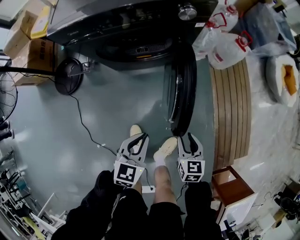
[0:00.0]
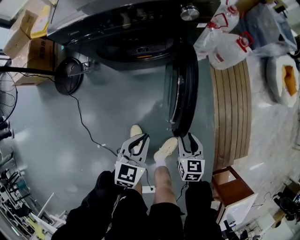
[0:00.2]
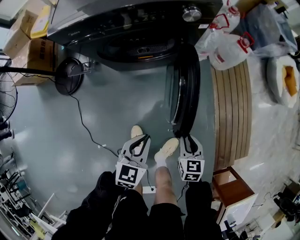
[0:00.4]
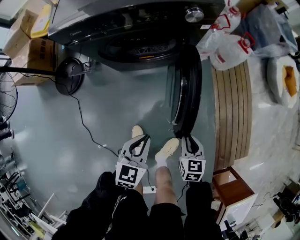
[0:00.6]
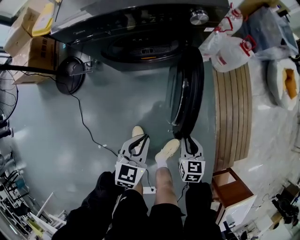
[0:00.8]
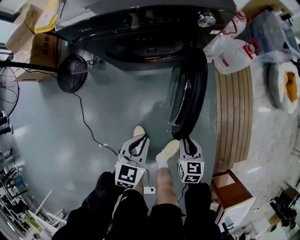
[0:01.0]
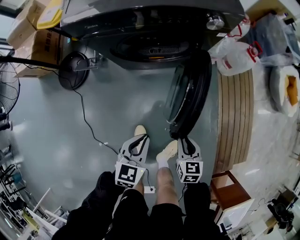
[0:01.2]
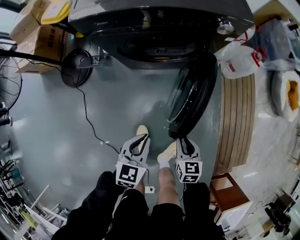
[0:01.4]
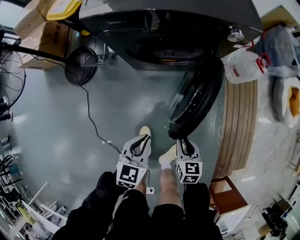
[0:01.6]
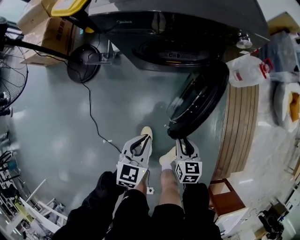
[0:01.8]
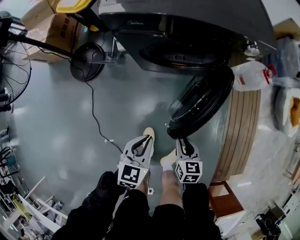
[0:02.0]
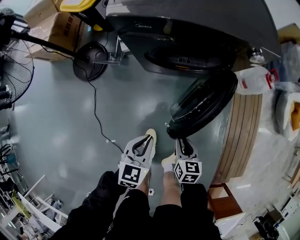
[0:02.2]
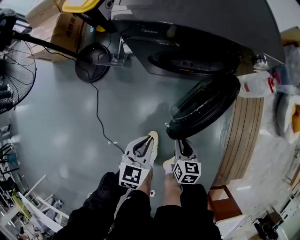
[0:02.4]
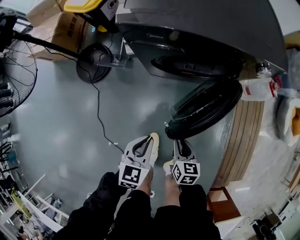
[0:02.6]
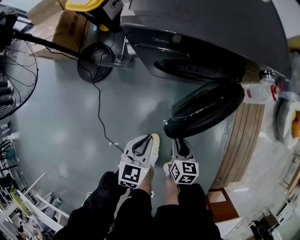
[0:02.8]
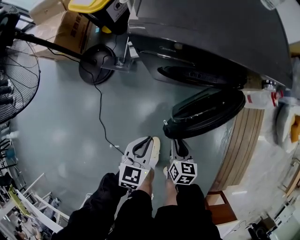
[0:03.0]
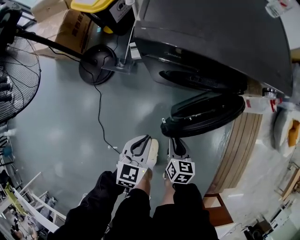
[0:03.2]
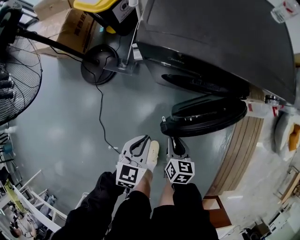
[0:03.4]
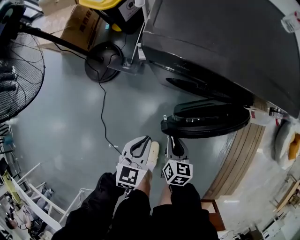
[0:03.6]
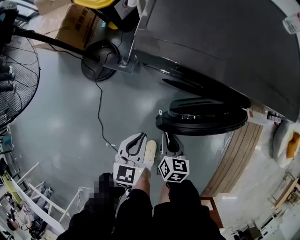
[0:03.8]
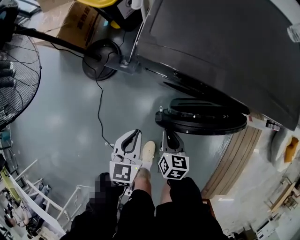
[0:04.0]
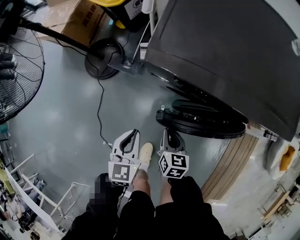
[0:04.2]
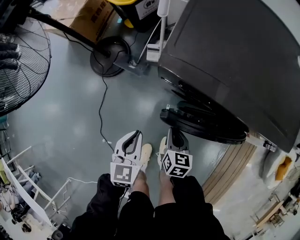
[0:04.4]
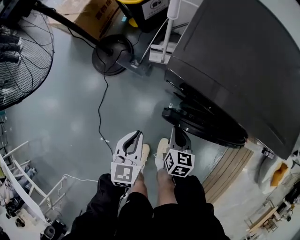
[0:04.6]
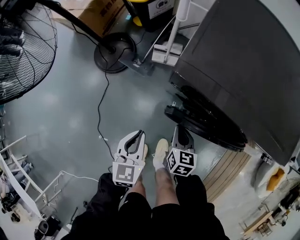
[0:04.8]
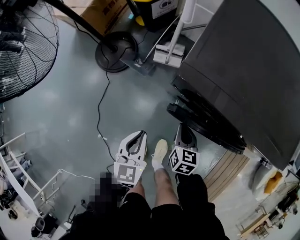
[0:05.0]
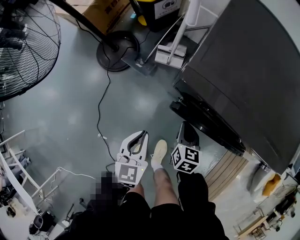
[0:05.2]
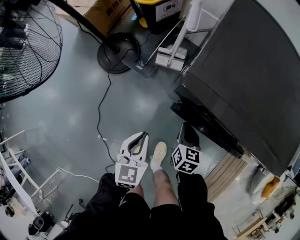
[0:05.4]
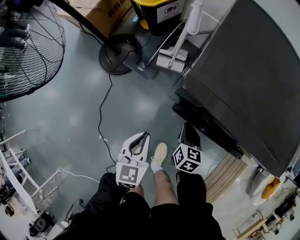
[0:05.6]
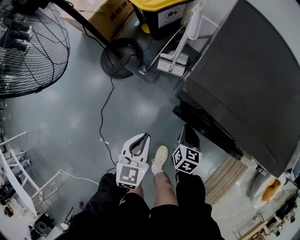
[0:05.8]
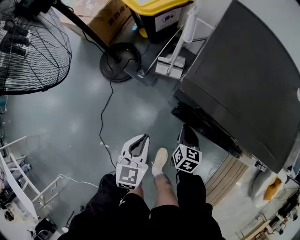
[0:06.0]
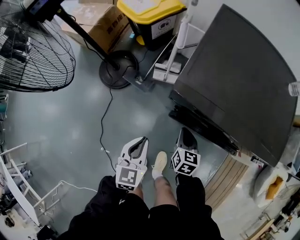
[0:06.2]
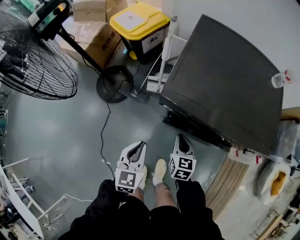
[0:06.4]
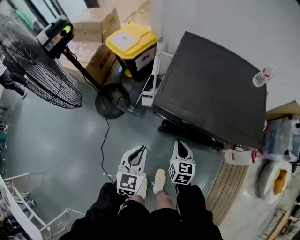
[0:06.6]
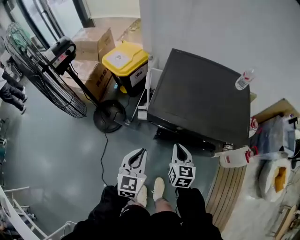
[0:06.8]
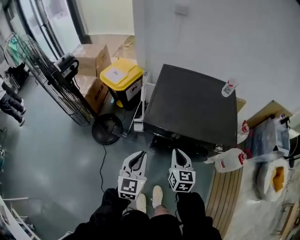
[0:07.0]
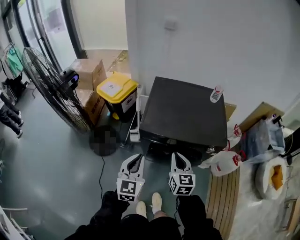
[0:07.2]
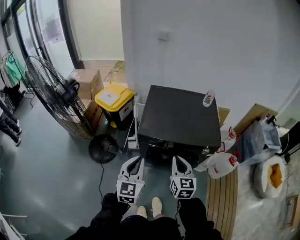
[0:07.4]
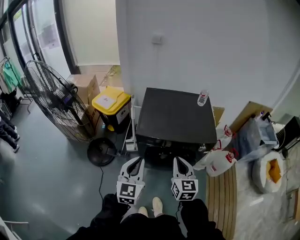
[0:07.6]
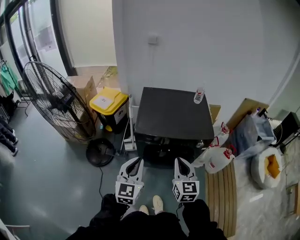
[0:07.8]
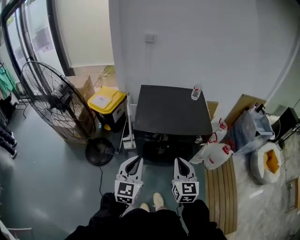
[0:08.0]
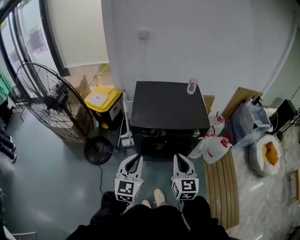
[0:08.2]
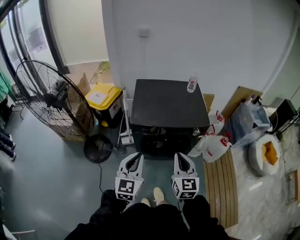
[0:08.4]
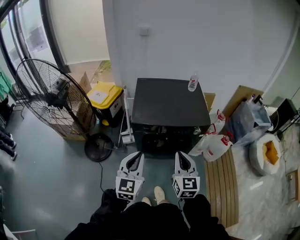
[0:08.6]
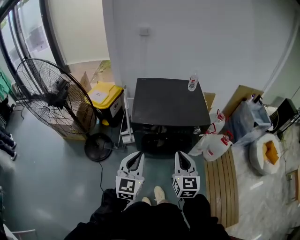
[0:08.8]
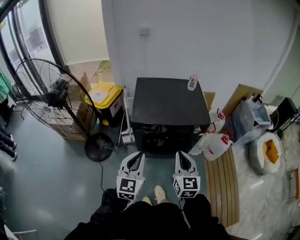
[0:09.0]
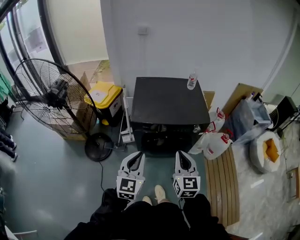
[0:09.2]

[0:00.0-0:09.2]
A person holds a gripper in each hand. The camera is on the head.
0:00.0 to 0:01.6: The grippers both shift to the left by roughly 15 cm.
0:01.6 to 0:03.0: Both grippers move to the left and forward, roughly 20 cm.
0:03.0 to 0:04.6: The right gripper shifts approximately 20 cm forward, and closes up. The left gripper moves forward and to the left, about 15 cm, and turns by some 30 degrees.
0:04.6 to 0:06.2: The right gripper heads forward, covering some 5 cm. Meanwhile the left gripper heads upward, covering roughly 5 cm.
0:06.2 to 0:07.6: The right gripper moves upward and backward, roughly 50 cm, and turns by some 30 degrees; the left gripper goes roughly 40 cm upward, and turns by about 30 degrees.
0:07.6 to 0:09.2: The two grippers go roughly 10 cm backward.

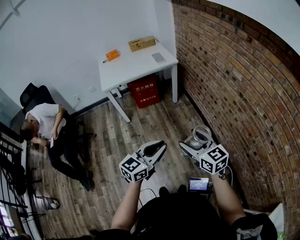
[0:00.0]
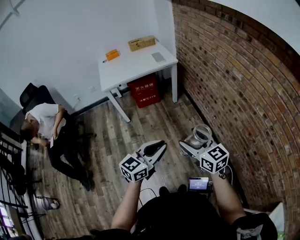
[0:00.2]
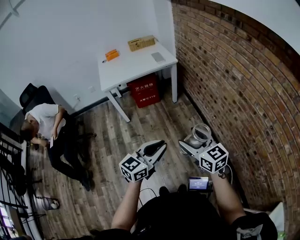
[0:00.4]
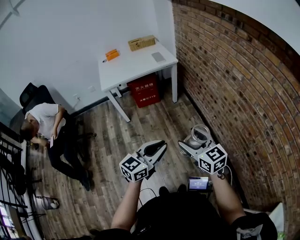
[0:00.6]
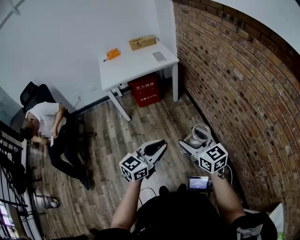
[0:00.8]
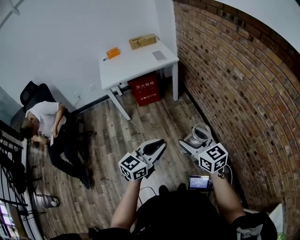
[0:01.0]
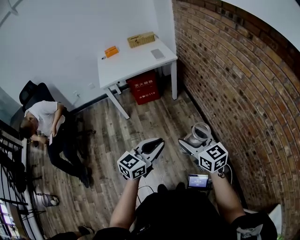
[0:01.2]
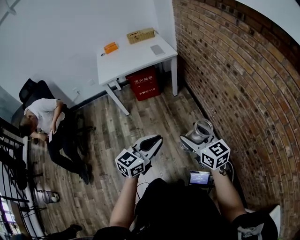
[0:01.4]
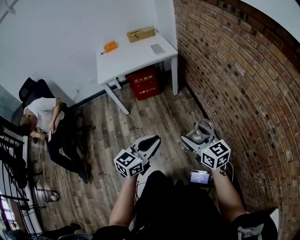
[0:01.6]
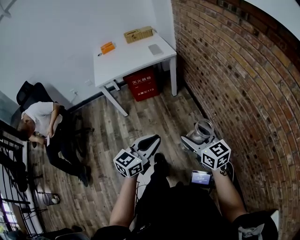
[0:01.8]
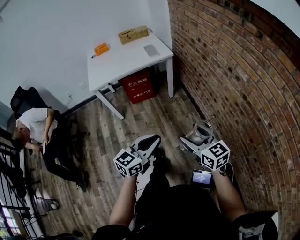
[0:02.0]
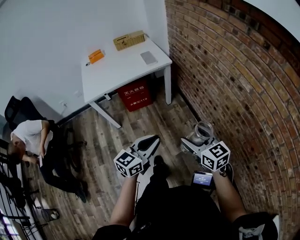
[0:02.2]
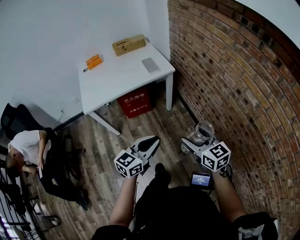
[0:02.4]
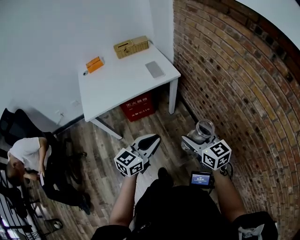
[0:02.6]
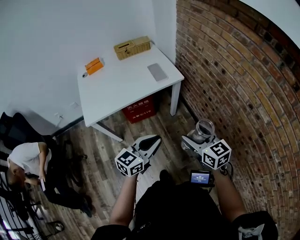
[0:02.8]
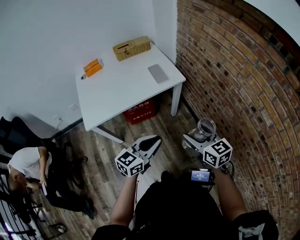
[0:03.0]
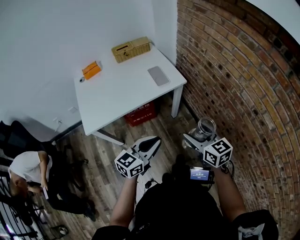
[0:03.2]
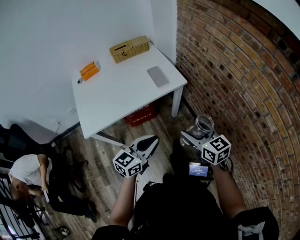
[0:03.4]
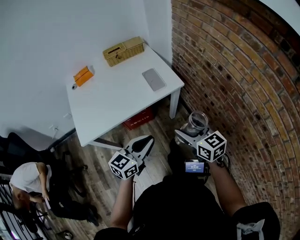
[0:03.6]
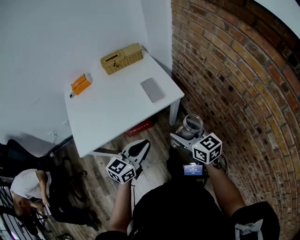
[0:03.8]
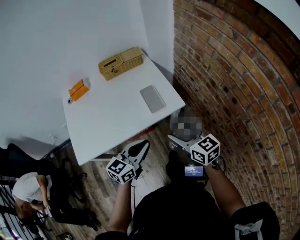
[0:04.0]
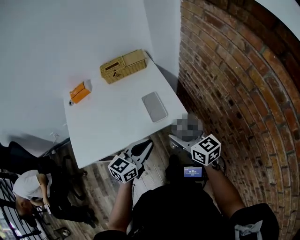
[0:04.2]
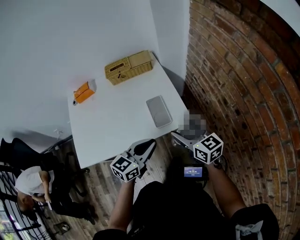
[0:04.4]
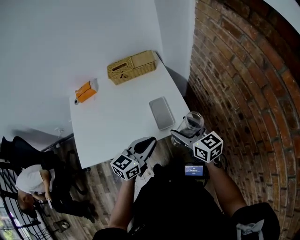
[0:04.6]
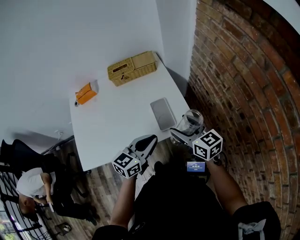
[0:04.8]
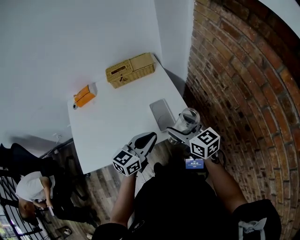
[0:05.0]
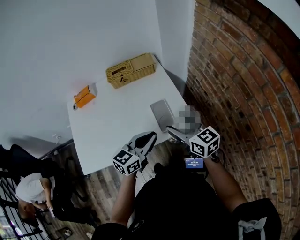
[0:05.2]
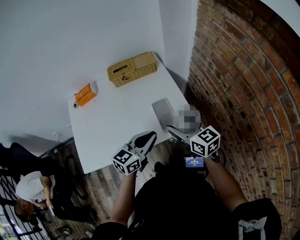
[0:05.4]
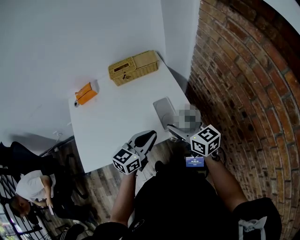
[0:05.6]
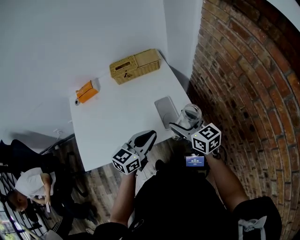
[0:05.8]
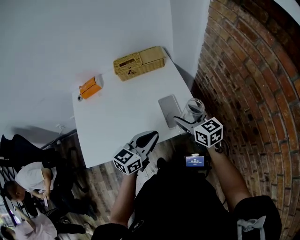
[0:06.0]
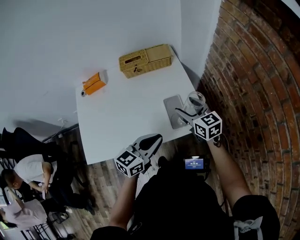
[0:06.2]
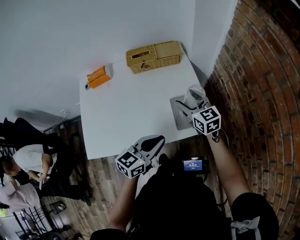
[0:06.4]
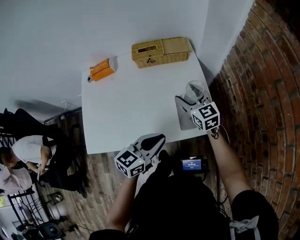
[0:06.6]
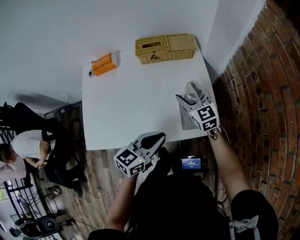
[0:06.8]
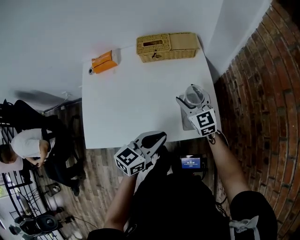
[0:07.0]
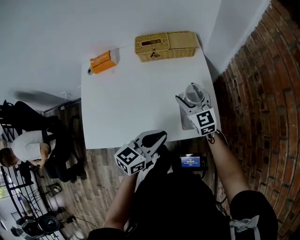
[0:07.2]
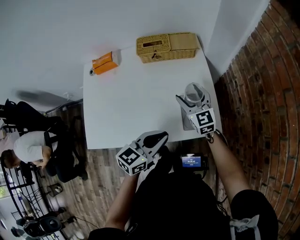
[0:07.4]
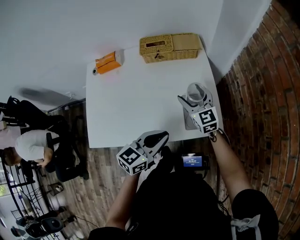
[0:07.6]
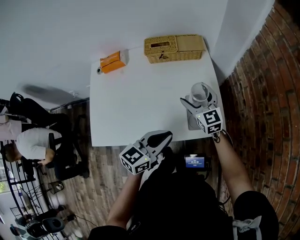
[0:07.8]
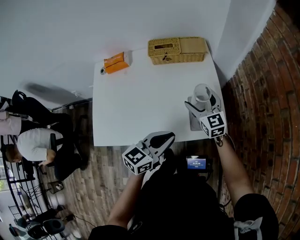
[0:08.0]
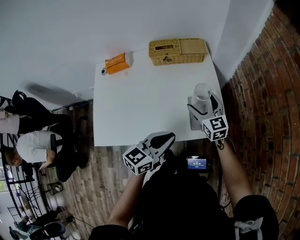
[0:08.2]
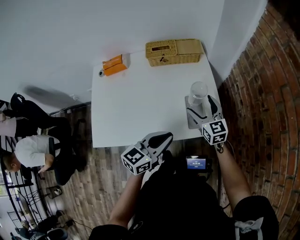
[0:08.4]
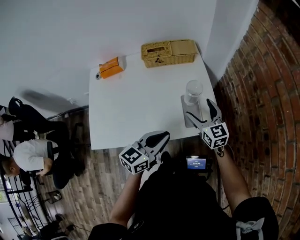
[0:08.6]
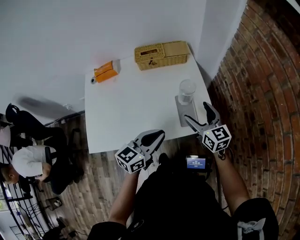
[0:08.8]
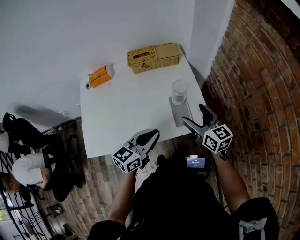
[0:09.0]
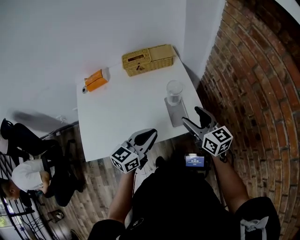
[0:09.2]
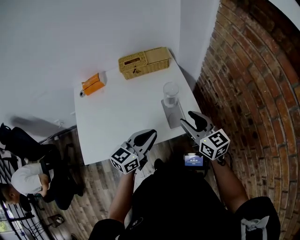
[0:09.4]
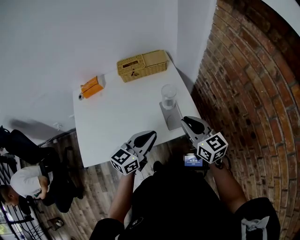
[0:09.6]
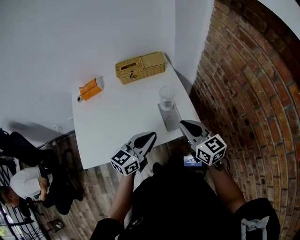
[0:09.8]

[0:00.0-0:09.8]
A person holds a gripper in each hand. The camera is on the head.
0:00.0 to 0:01.4: The grippers make only small movements.
0:01.4 to 0:02.8: Both grippers travel together forward, about 40 cm.
0:02.8 to 0:04.2: Both grippers travel together forward, about 35 cm.
0:04.2 to 0:05.6: The left gripper travels forward by about 10 cm. Meanwhile the right gripper shifts about 10 cm forward and to the left.
0:05.6 to 0:07.0: The right gripper travels forward, downward and to the left by about 20 cm, and turns by some 20 degrees.
0:07.0 to 0:08.4: The right gripper shifts by roughly 5 cm.
0:08.4 to 0:09.8: The right gripper moves backward and upward, approximately 15 cm, and closes its fingers.

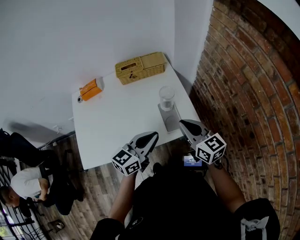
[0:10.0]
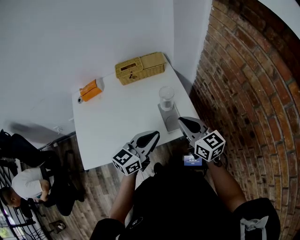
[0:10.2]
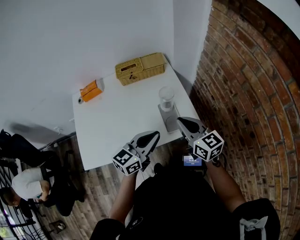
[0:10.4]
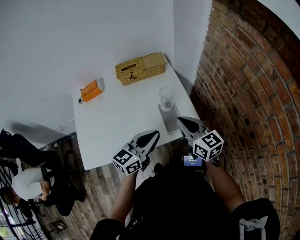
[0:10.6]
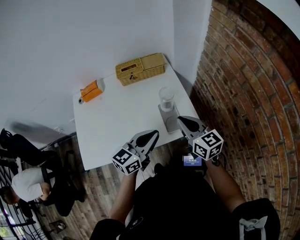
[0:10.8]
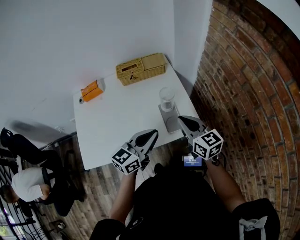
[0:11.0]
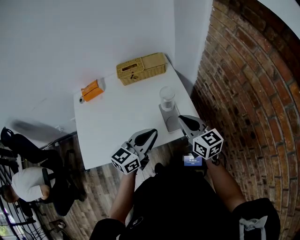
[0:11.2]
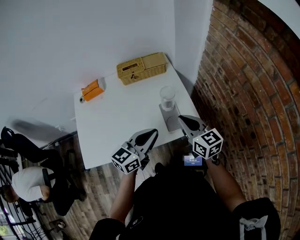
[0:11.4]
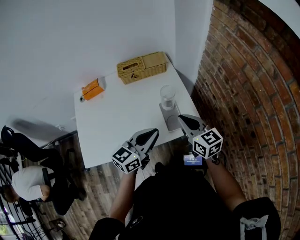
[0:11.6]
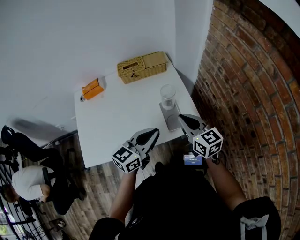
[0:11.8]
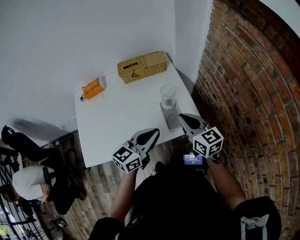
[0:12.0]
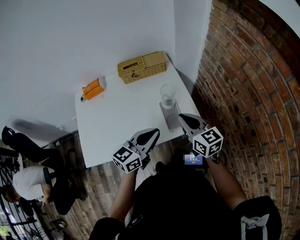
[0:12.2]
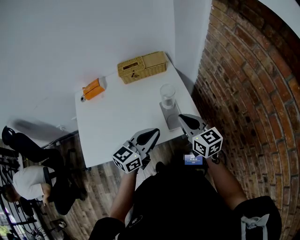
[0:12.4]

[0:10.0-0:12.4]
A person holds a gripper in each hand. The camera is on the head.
0:10.0 to 0:11.2: The grippers make only small movements.
0:11.2 to 0:12.4: Both grippers stay about where they are.

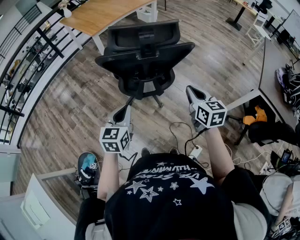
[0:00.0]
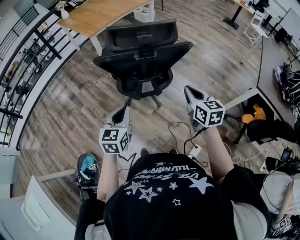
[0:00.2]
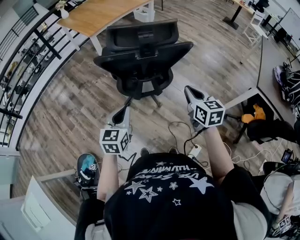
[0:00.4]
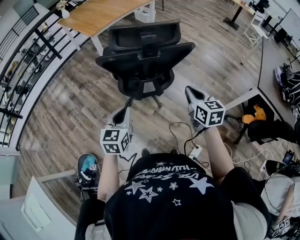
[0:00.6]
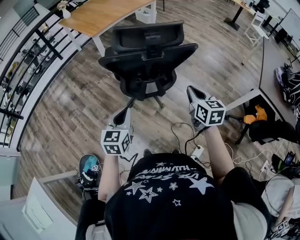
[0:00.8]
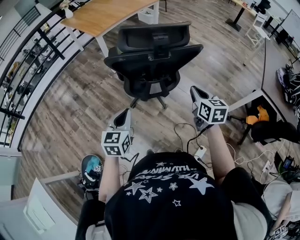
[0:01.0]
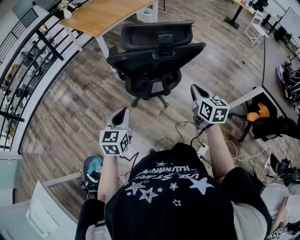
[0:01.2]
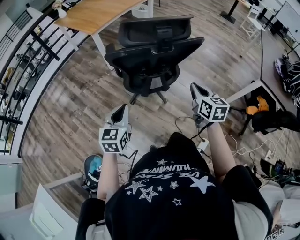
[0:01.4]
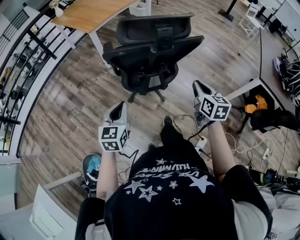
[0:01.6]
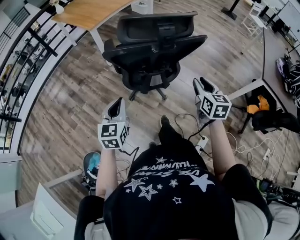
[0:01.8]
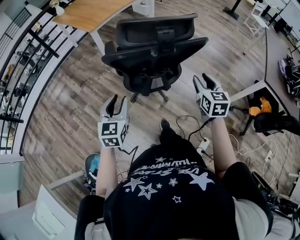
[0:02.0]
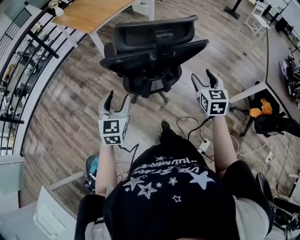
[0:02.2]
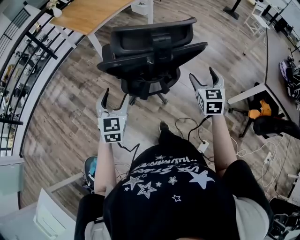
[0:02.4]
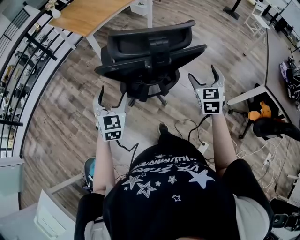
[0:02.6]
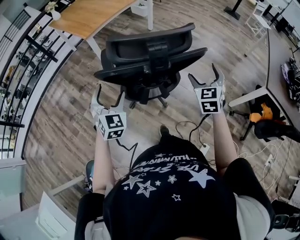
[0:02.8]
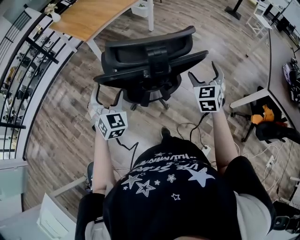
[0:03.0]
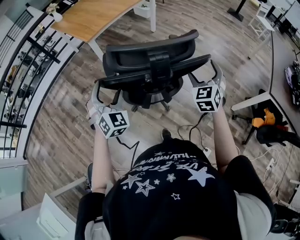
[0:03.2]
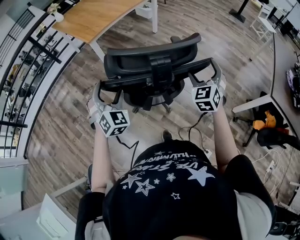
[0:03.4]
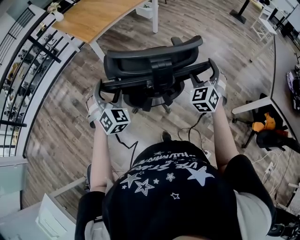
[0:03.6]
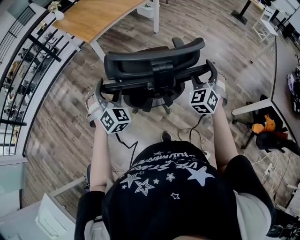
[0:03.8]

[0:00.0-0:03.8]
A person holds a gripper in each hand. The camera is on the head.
0:00.0 to 0:01.2: The right gripper is displaced to the left by approximately 5 cm. The left gripper travels to the left by roughly 10 cm.
0:01.2 to 0:02.6: Both grippers move forward, about 15 cm. The right gripper rotates about 30 degrees, and opens up. The left gripper swivels roughly 30 degrees, and opens its fingers.
0:02.6 to 0:03.8: The two grippers go about 10 cm forward. The right gripper rotates roughly 30 degrees; the left gripper turns by approximately 30 degrees.
